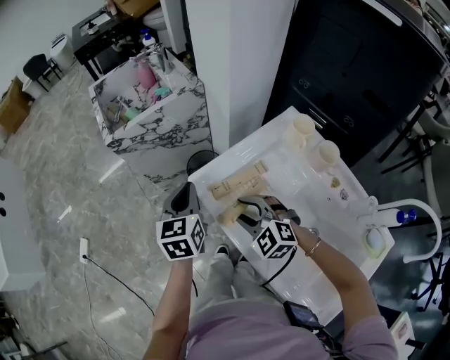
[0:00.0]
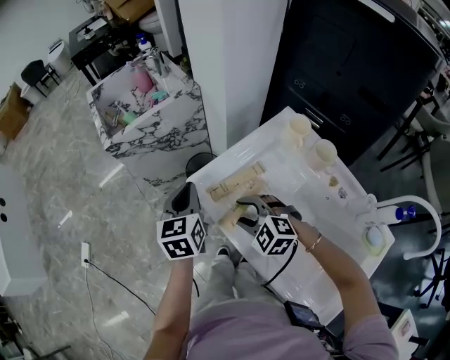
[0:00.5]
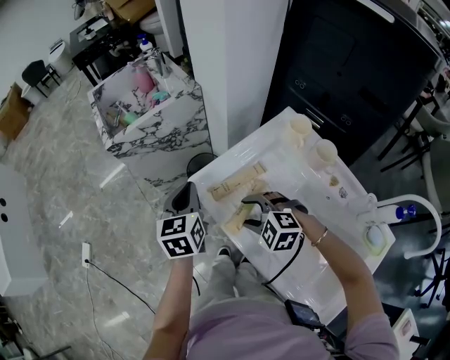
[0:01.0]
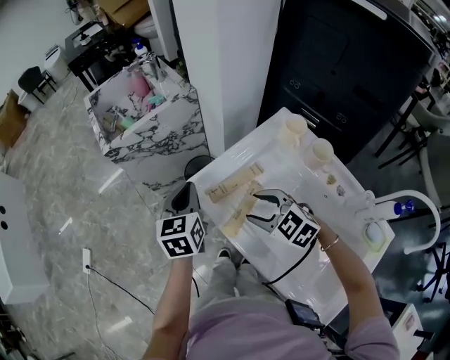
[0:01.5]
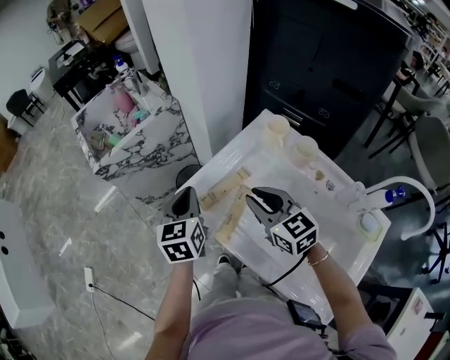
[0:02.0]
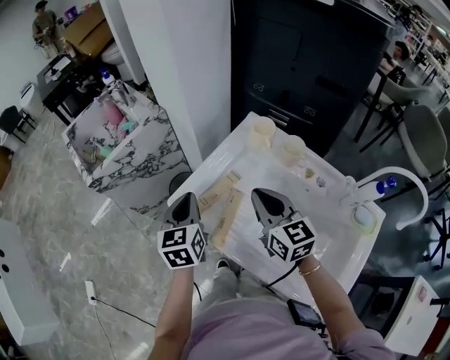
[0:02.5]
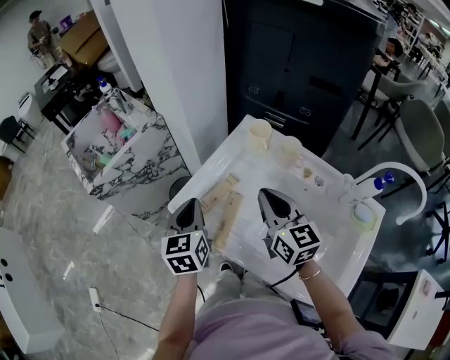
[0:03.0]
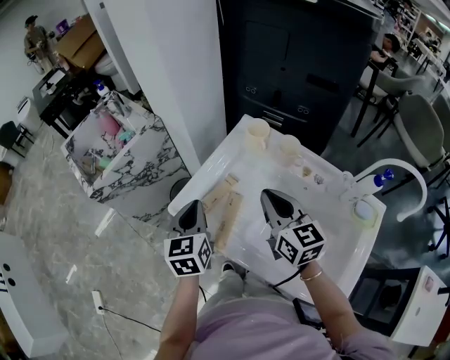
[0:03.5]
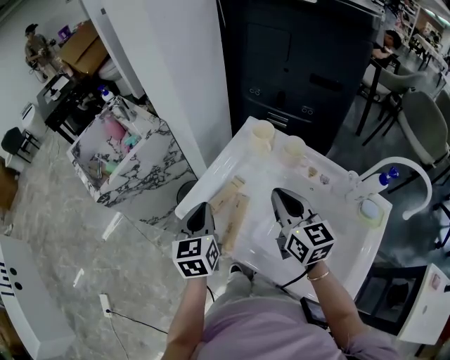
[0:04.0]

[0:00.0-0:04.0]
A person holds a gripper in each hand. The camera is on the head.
0.0 to 2.0 s: The right gripper is displaced upward and to the right by approximately 15 cm, rotates around the line of its fingers by roughly 40 degrees, clockwise from behind, and closes its fingers. Meanwhile the left gripper is displaced to the right by some 5 cm.
2.0 to 4.0 s: The right gripper heads to the right, covering about 10 cm, and turns by about 30 degrees, while the left gripper is displaced to the right by roughly 5 cm.

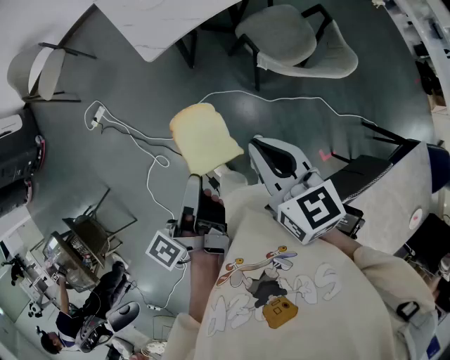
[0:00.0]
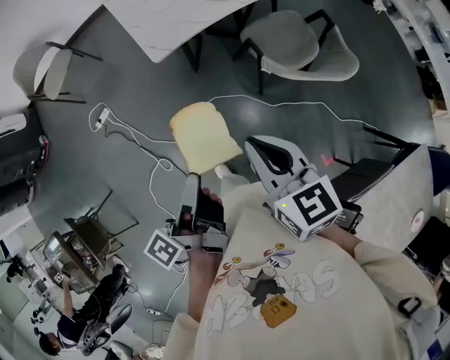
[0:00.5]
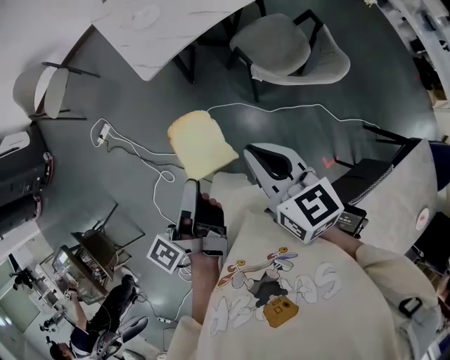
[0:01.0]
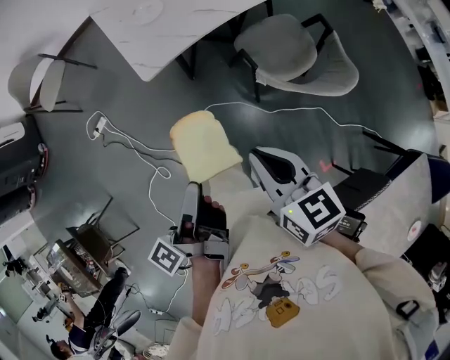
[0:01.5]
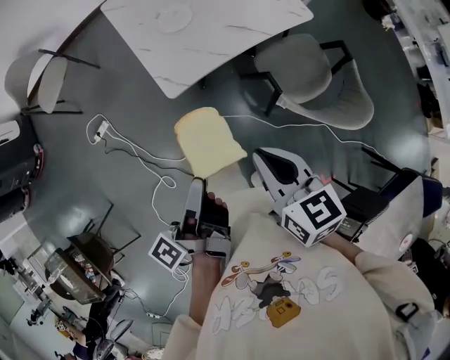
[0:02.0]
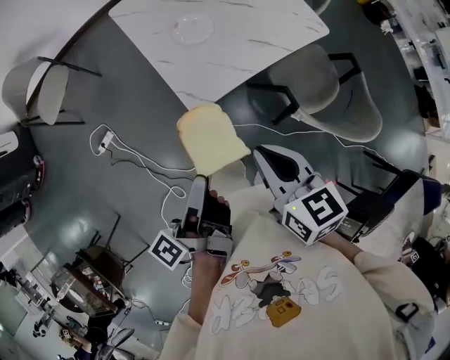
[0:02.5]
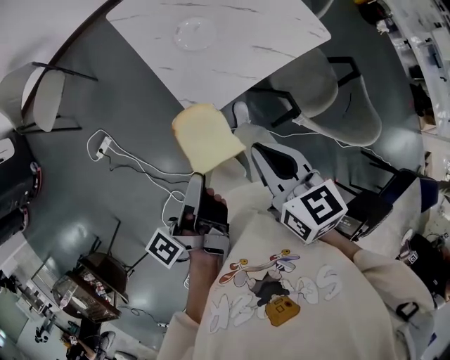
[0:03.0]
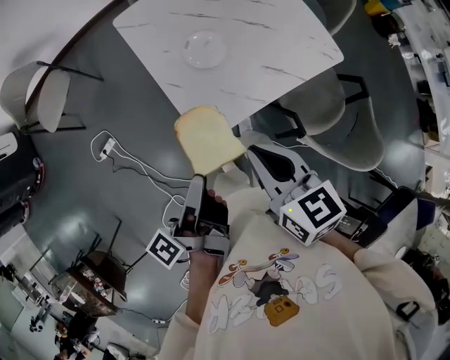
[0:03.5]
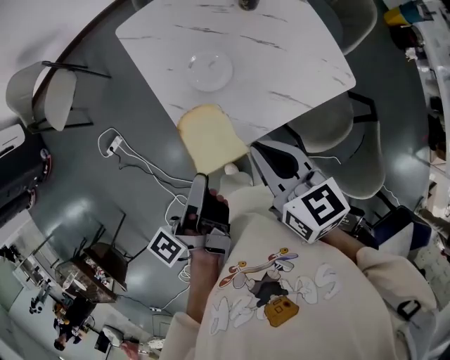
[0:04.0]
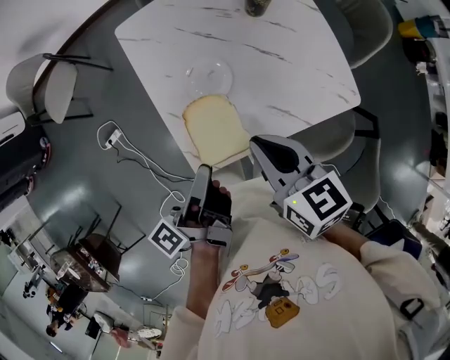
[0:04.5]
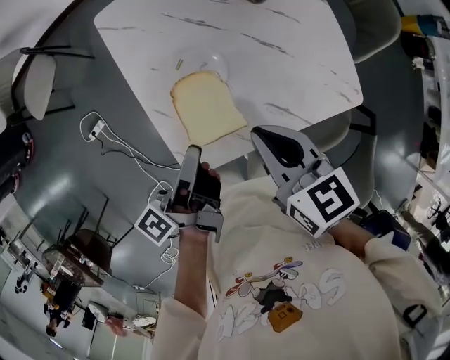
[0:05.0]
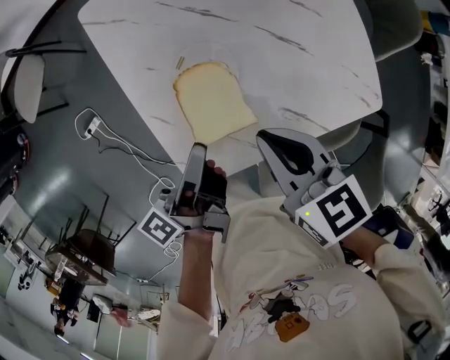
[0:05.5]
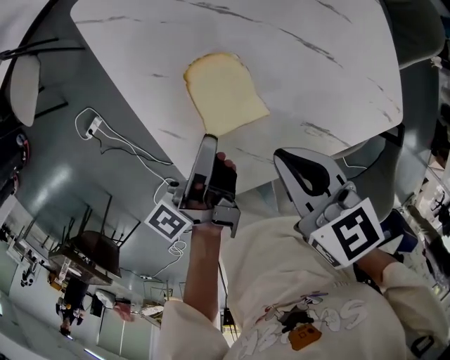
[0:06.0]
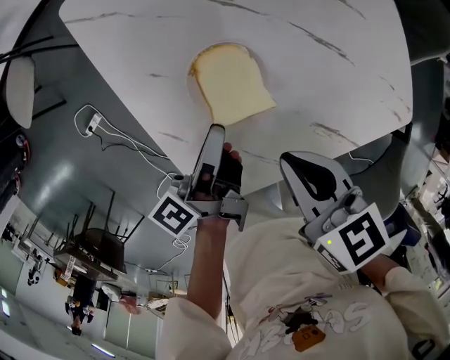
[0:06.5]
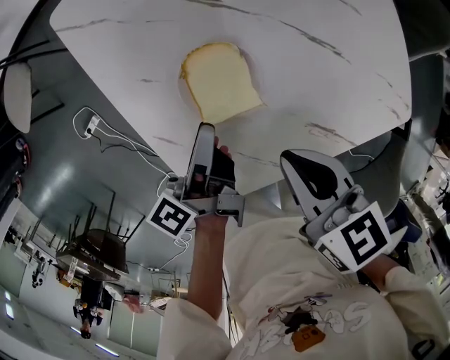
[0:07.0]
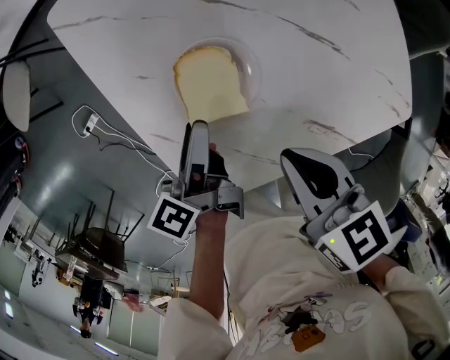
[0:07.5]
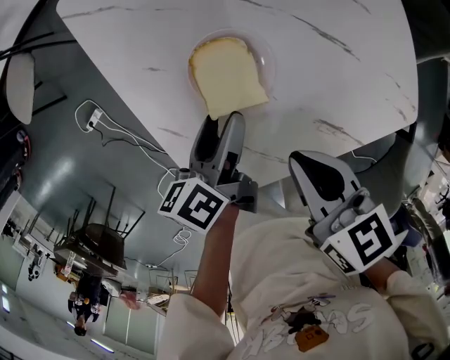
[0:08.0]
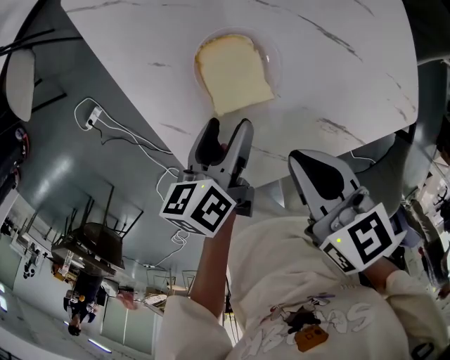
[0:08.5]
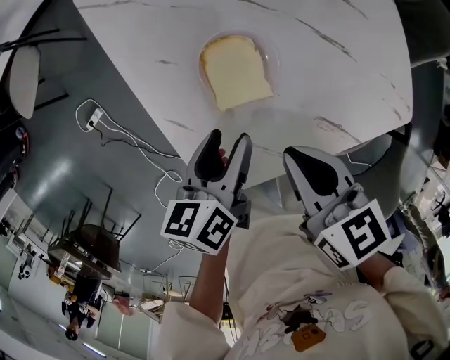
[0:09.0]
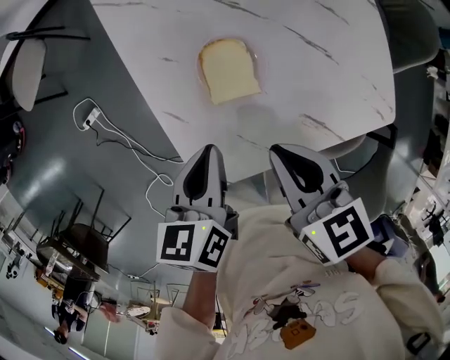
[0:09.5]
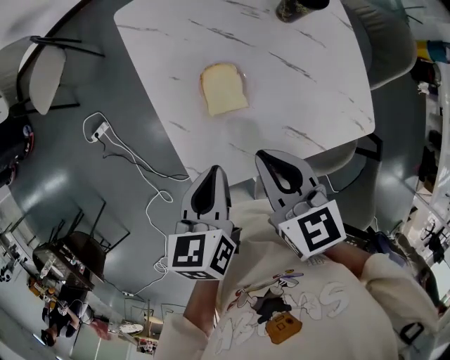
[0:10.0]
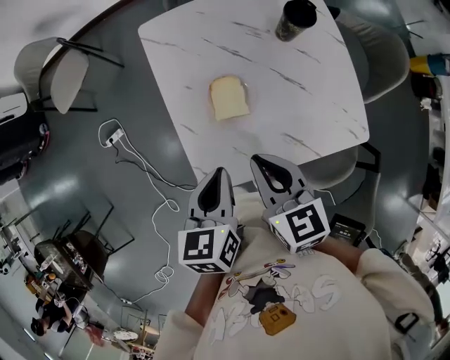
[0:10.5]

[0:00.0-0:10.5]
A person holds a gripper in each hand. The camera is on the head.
0.0 to 2.0 s: The right gripper ends up approximately 20 cm from where it was.
2.0 to 4.0 s: The right gripper changes place by some 35 cm.
4.0 to 6.5 s: The right gripper travels downward by approximately 20 cm.
8.5 to 10.5 s: The right gripper moves upward, roughly 15 cm, and swivels roughly 20 degrees.

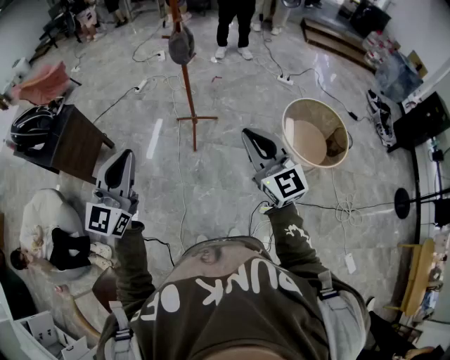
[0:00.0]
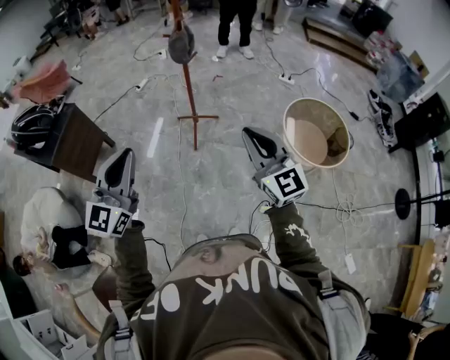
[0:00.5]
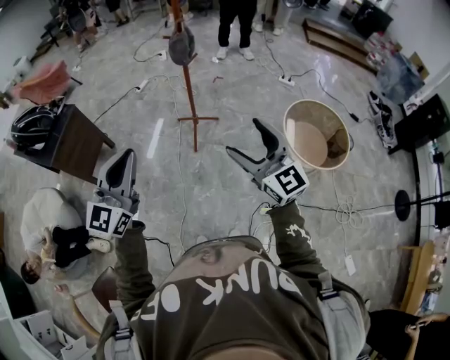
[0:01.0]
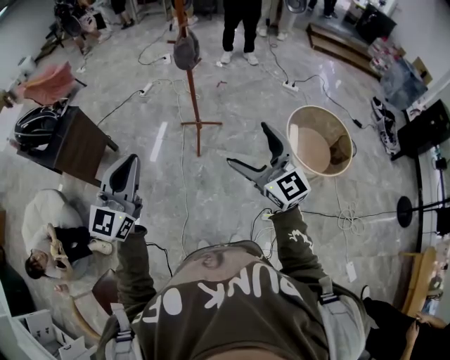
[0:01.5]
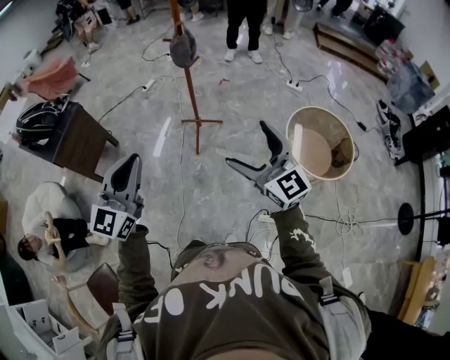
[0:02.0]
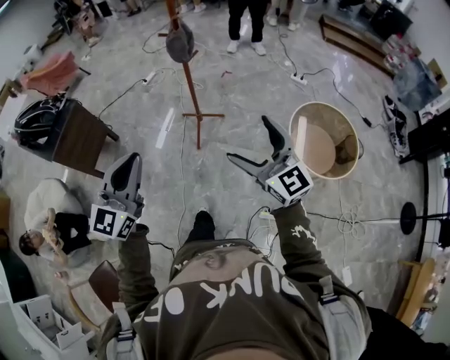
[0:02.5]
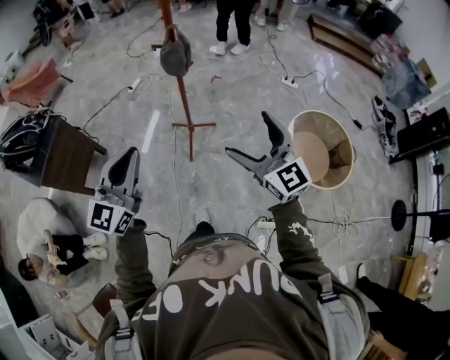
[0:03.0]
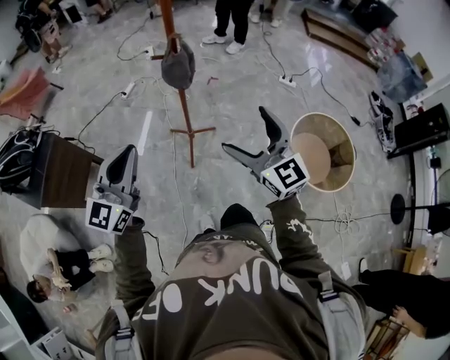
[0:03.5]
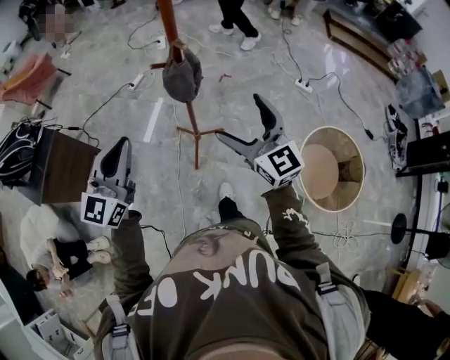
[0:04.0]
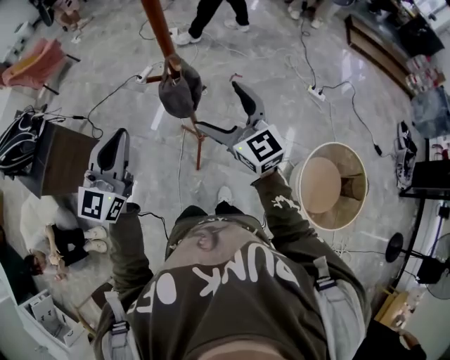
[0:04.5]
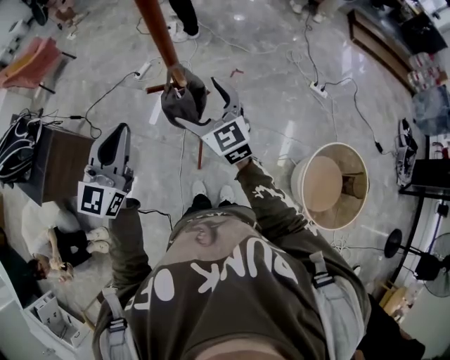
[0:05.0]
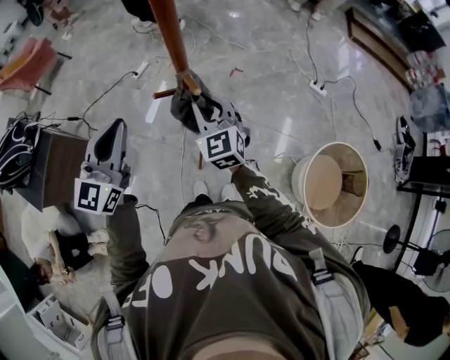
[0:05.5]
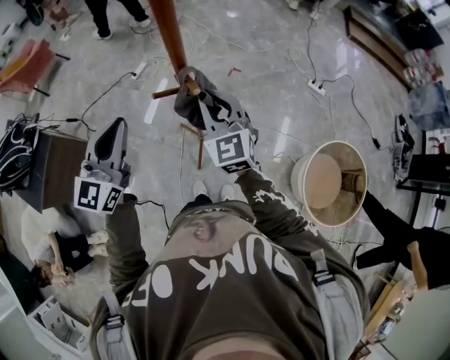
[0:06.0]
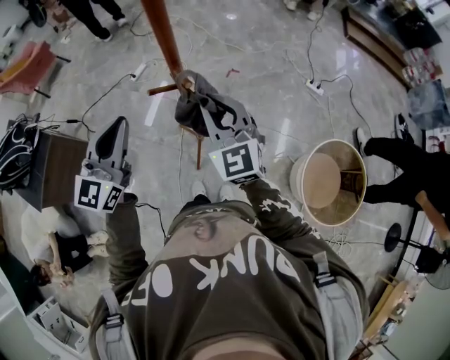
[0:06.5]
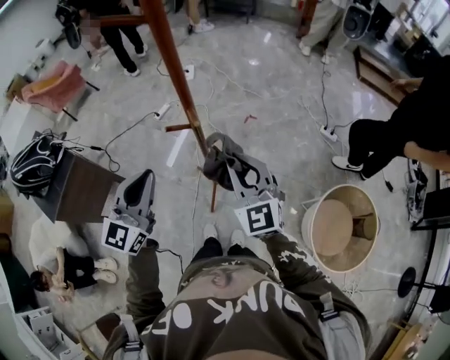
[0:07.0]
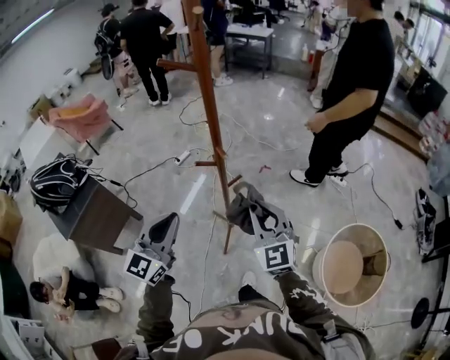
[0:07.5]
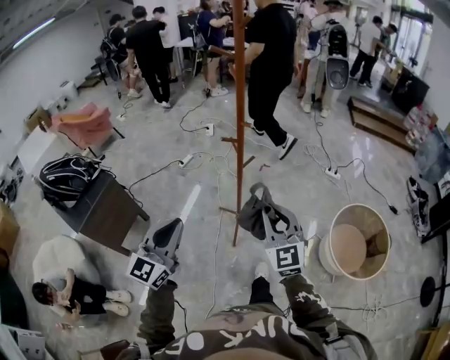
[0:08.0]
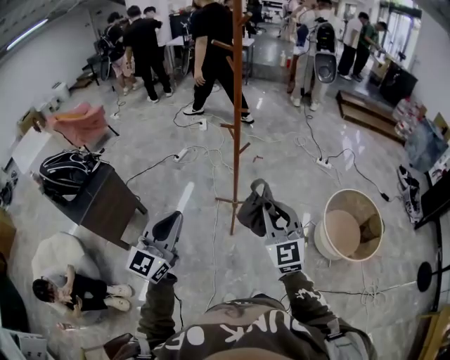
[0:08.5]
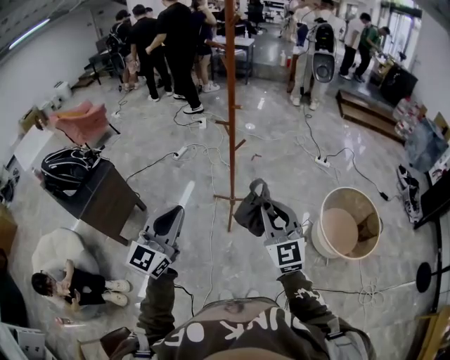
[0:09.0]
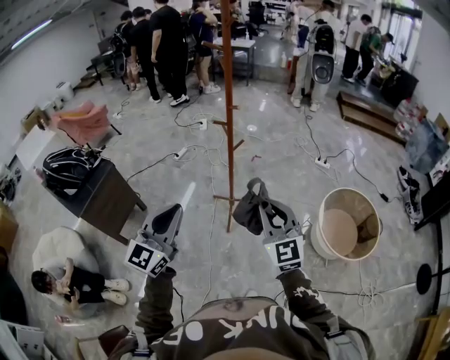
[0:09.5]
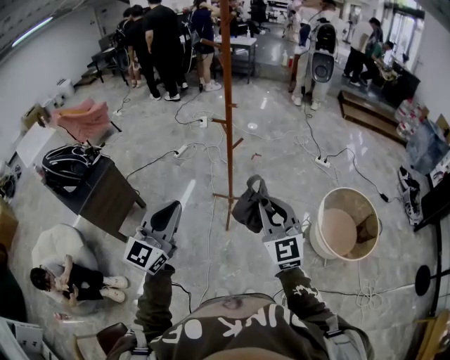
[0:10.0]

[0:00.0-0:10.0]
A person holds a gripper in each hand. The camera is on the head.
0.0 to 2.0 s: The right gripper changes place by approximately 5 cm, and opens. Meanwhile the left gripper goes about 5 cm to the right.
2.0 to 4.0 s: Both grippers are carried forward, about 40 cm.
4.0 to 6.0 s: The two grippers go some 20 cm forward. The right gripper closes its fingers.
6.0 to 8.0 s: Both grippers move backward, roughly 35 cm.
8.0 to 10.0 s: The right gripper shifts about 15 cm backward. The left gripper is displaced backward and to the right by some 10 cm.

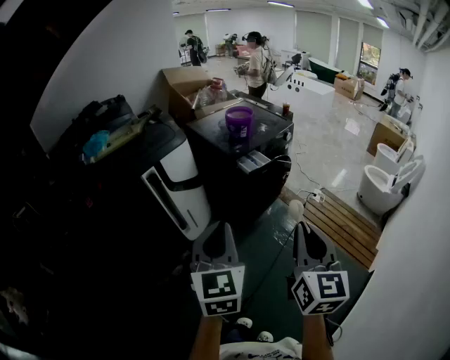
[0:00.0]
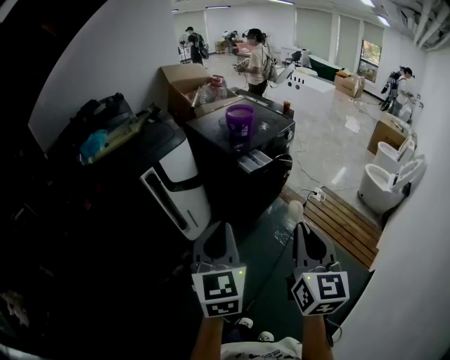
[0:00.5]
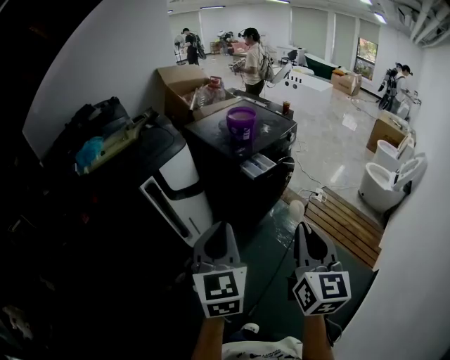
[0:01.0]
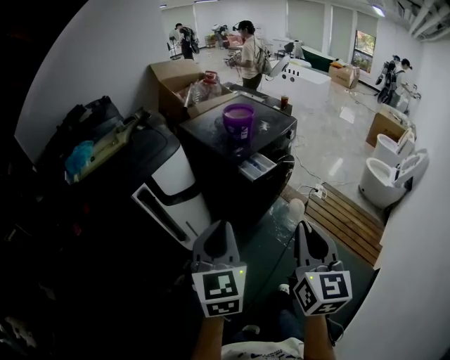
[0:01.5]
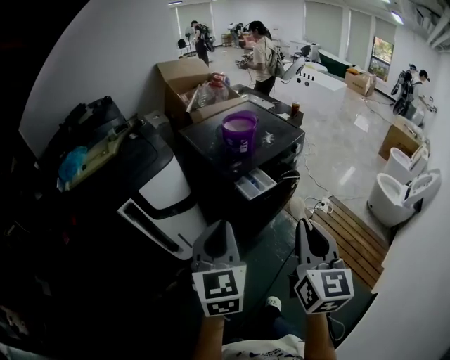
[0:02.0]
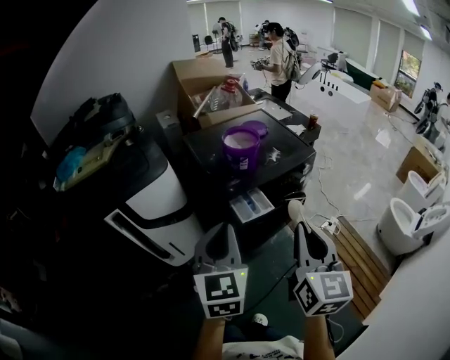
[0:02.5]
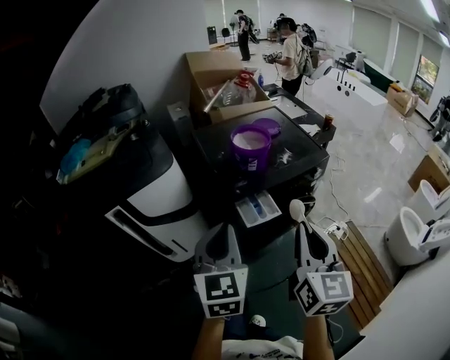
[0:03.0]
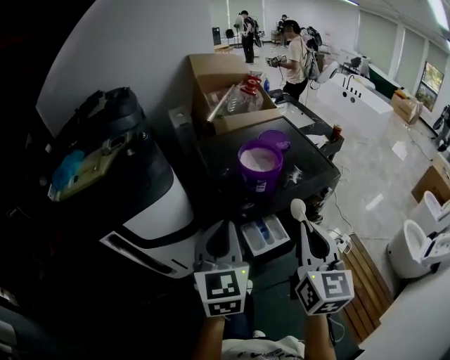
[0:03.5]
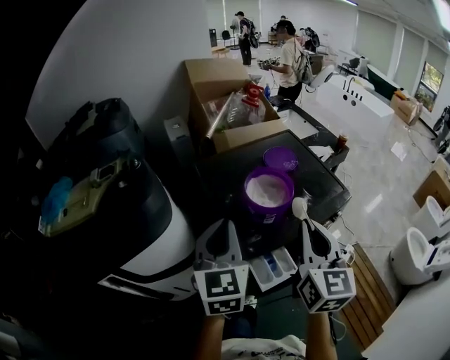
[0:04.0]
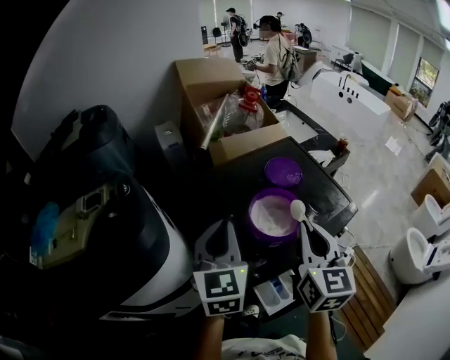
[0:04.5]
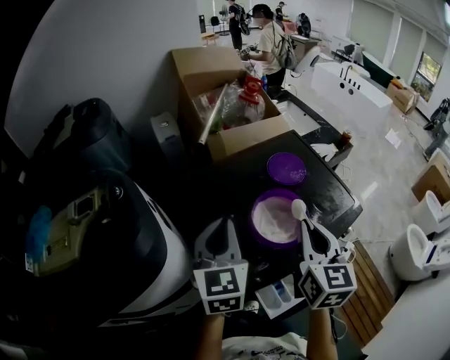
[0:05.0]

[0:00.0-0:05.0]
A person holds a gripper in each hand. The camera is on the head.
0.0 to 2.5 s: The two grippers go some 35 cm forward.
2.5 to 5.0 s: The pair of grippers is taken forward, about 40 cm.
